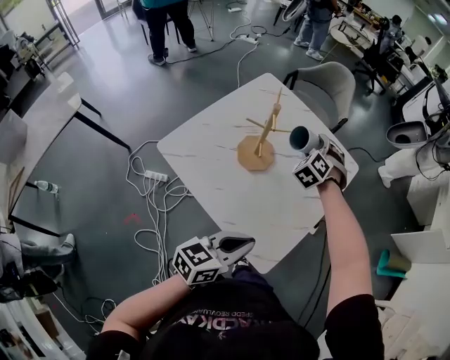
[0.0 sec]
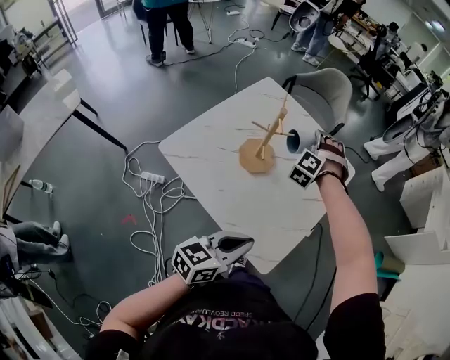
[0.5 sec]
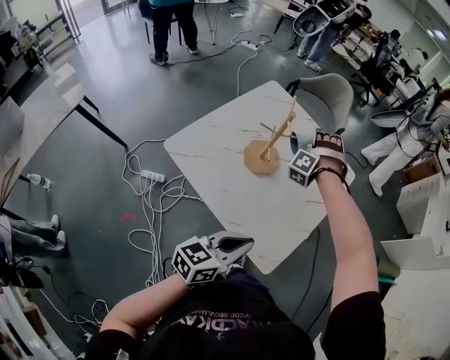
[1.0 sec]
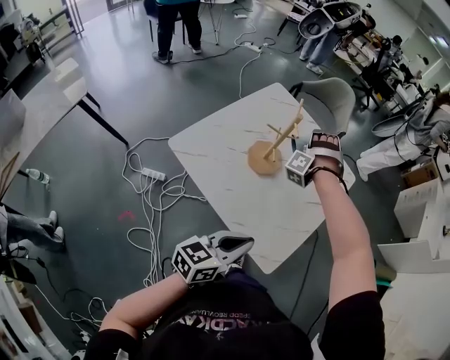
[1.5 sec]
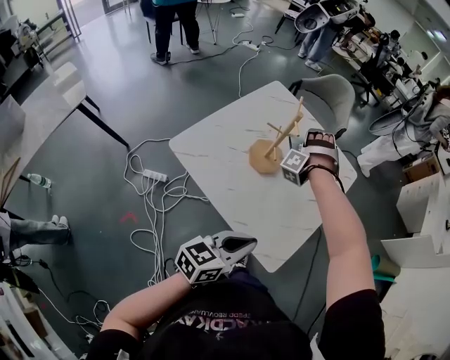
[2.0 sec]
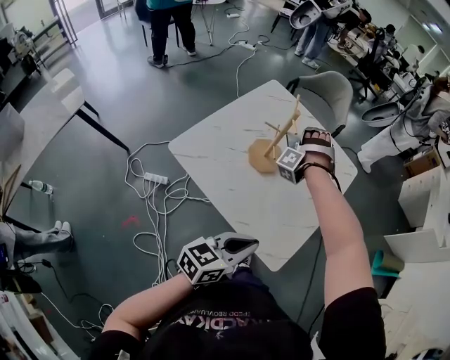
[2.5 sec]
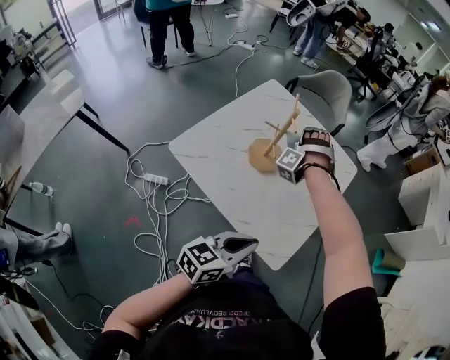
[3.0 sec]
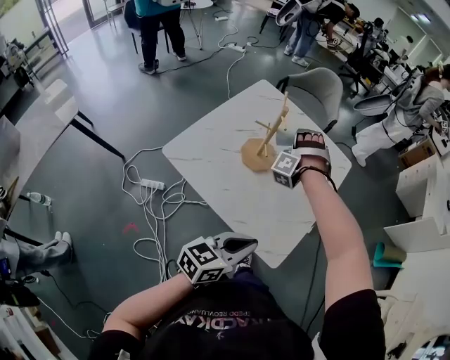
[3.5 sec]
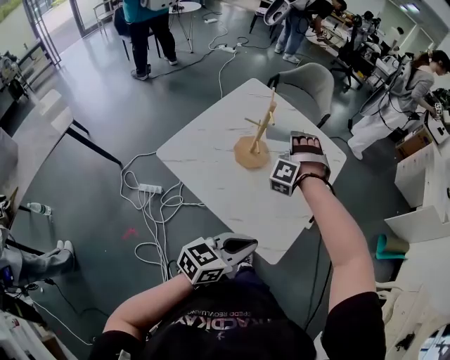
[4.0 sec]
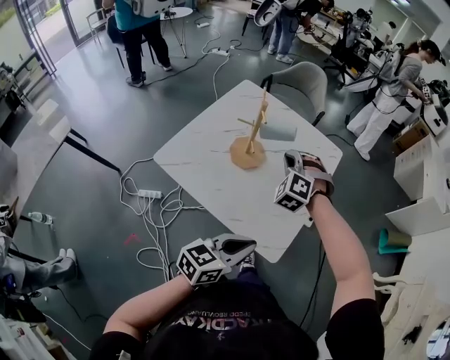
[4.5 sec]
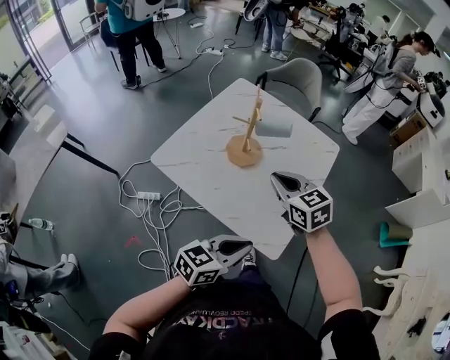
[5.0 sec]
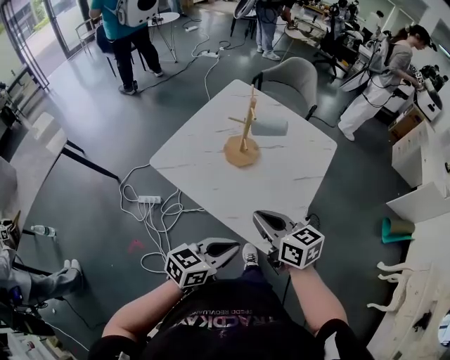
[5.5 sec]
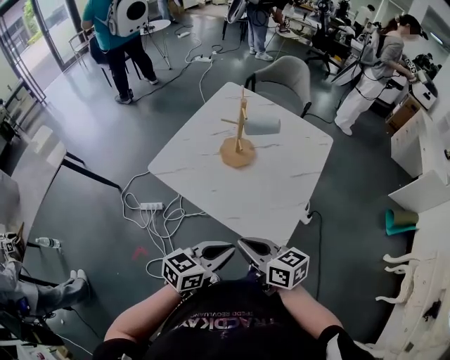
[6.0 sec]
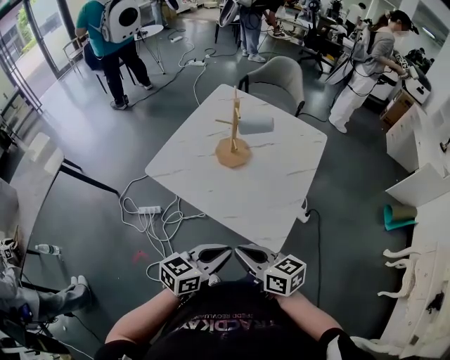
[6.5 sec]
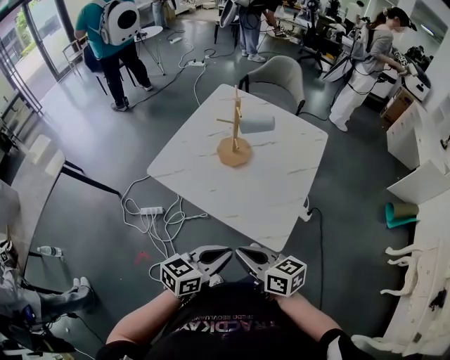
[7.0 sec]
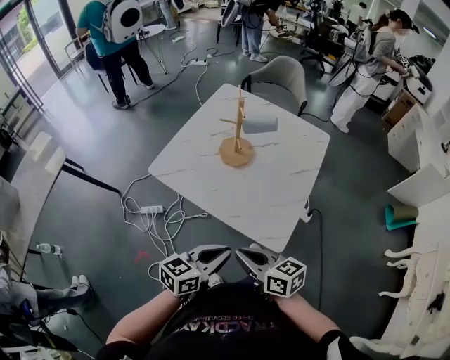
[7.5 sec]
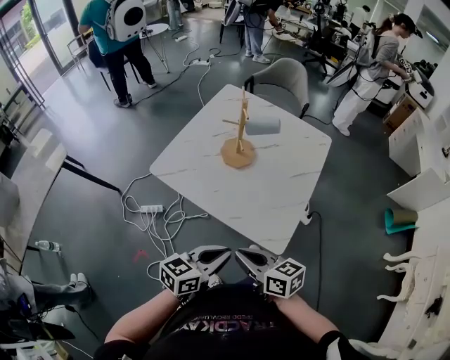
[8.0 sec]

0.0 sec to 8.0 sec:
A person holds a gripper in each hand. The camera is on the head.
0.0 sec to 2.0 sec: The left gripper is displaced backward by about 5 cm; the right gripper changes place by roughly 5 cm, and rolls counterclockwise, seen from behind, by roughly 50 degrees.
2.0 sec to 4.0 sec: The right gripper is displaced backward by roughly 5 cm.
4.0 sec to 6.0 sec: The left gripper moves approximately 5 cm, while the right gripper changes place by approximately 35 cm, turns by about 130 degrees, and closes its fingers.
6.0 sec to 8.0 sec: The grippers stay close to where they were, moving slightly.

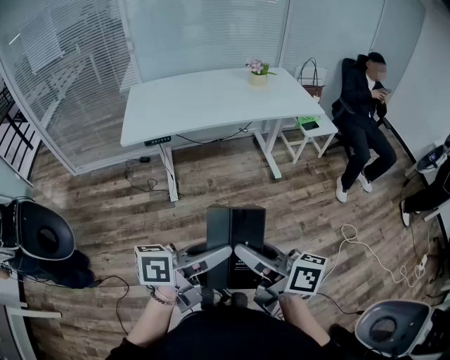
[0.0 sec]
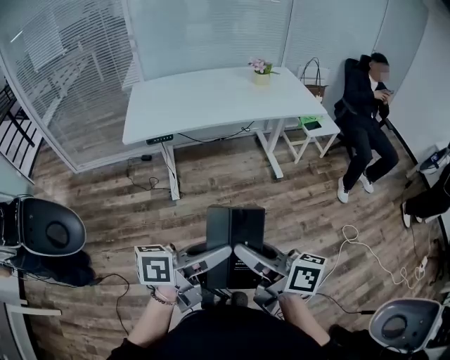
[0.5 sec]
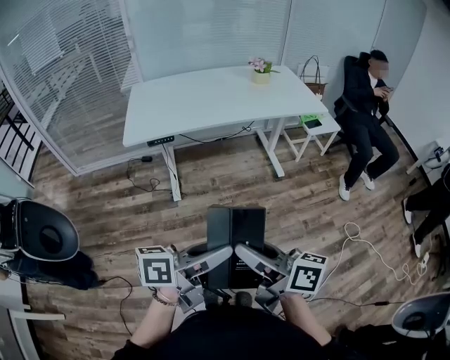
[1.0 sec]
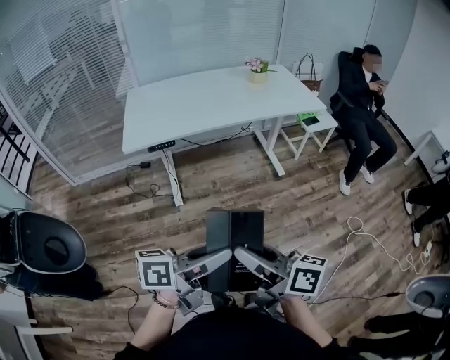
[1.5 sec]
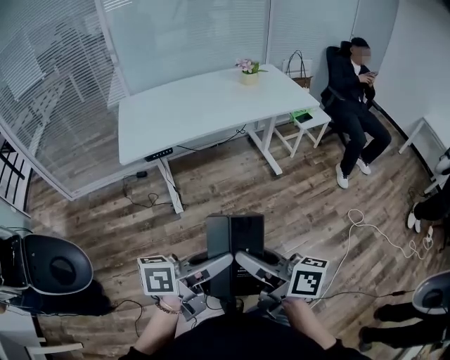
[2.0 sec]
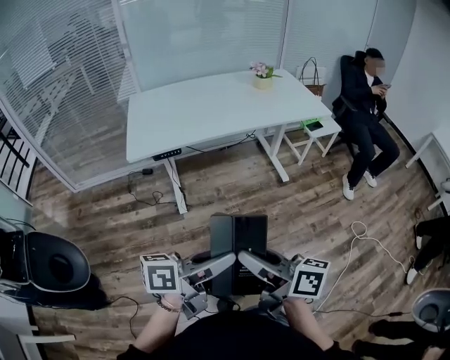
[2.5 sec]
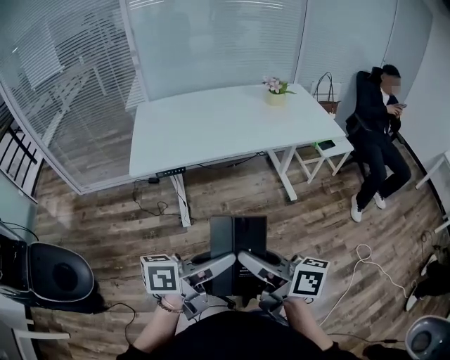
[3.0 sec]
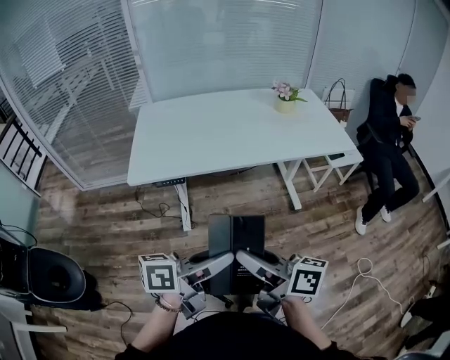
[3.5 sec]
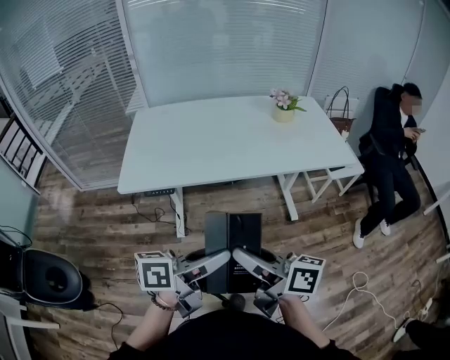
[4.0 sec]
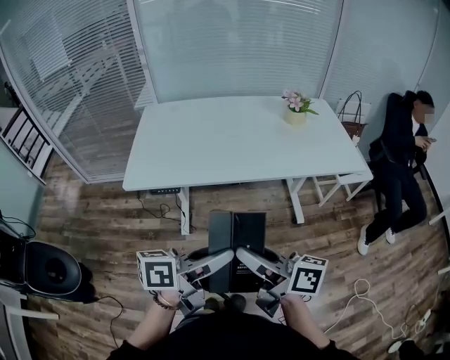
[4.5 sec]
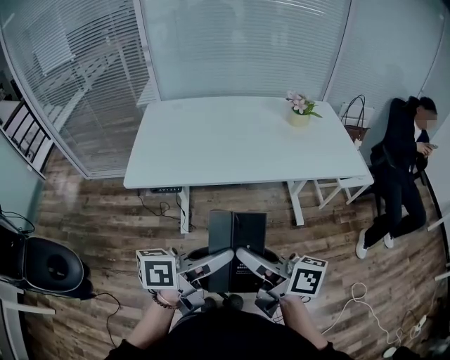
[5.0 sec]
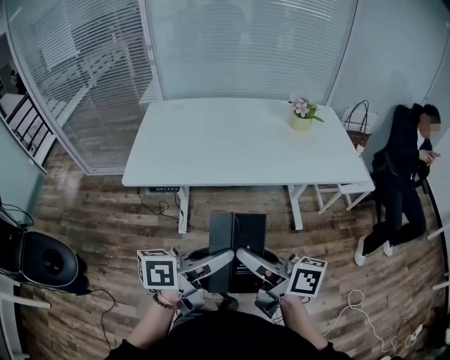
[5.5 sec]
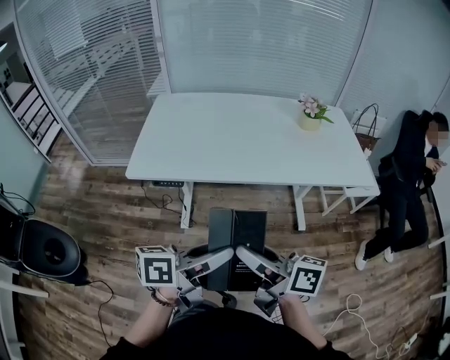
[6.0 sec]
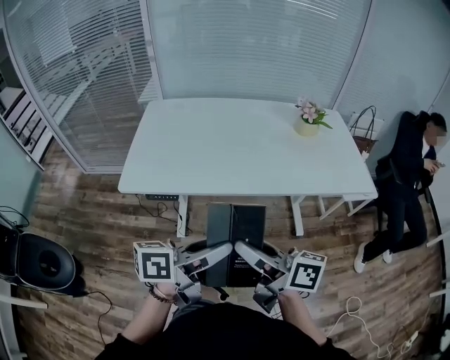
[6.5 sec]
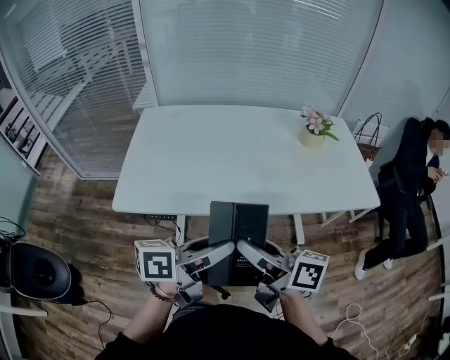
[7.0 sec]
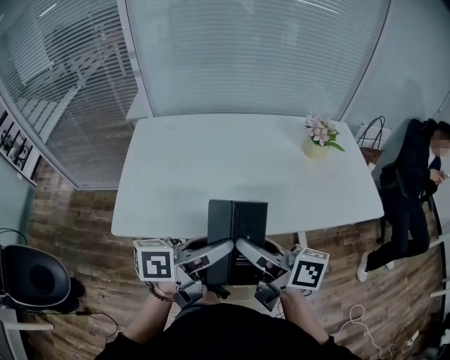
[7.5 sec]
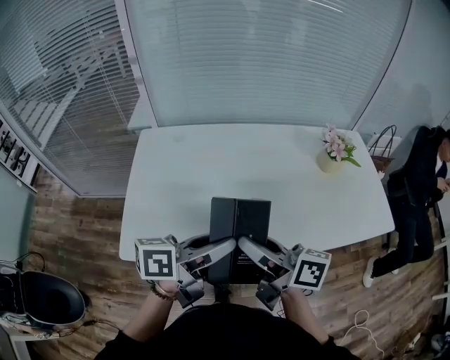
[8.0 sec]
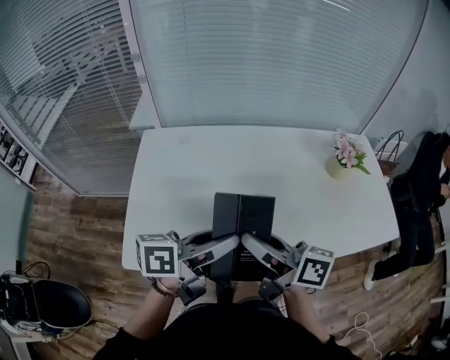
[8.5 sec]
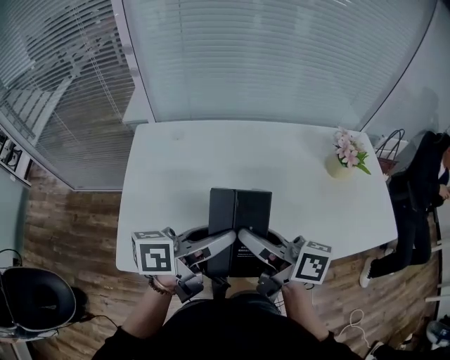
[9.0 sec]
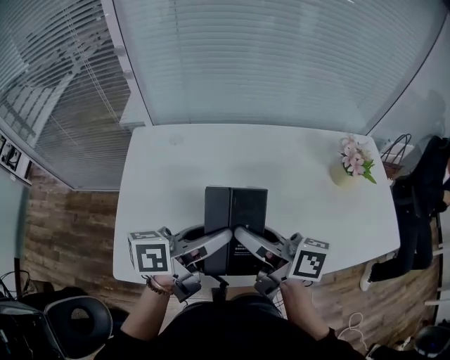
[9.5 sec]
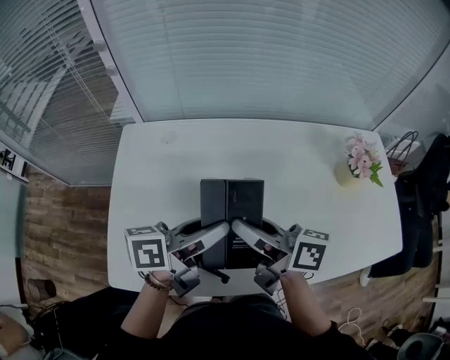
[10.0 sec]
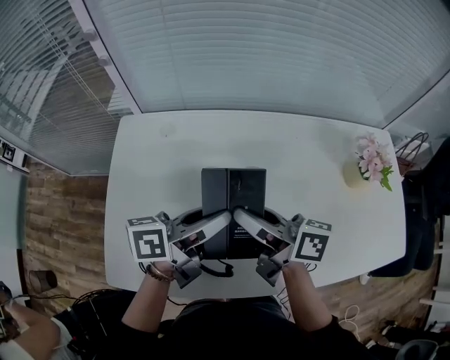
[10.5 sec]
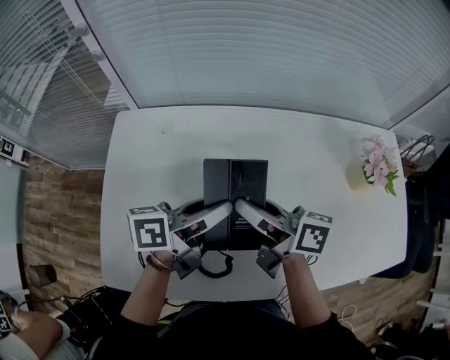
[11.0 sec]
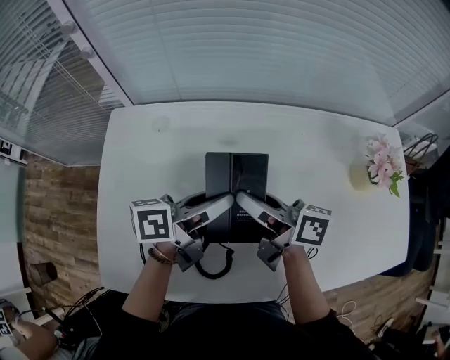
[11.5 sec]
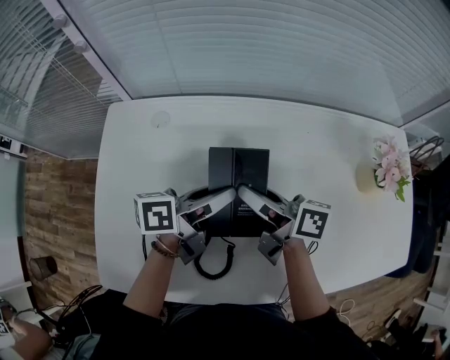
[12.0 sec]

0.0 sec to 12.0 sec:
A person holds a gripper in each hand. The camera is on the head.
0.0 sec to 2.0 sec: The two grippers go roughly 10 cm to the left.
2.0 sec to 4.0 sec: The two grippers go approximately 25 cm forward.
4.0 sec to 6.0 sec: The grippers stay close to where they were, moving slightly.
6.0 sec to 8.0 sec: Both grippers travel together forward, some 30 cm.
8.0 sec to 10.0 sec: The two grippers go approximately 15 cm forward.
10.0 sec to 12.0 sec: Both grippers move forward and downward, approximately 15 cm.

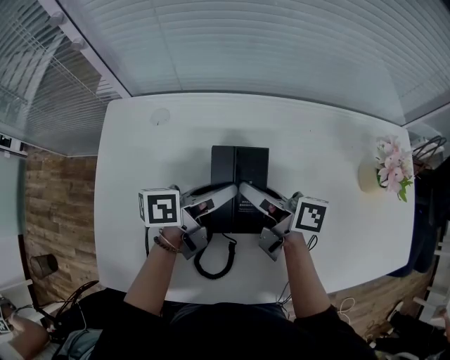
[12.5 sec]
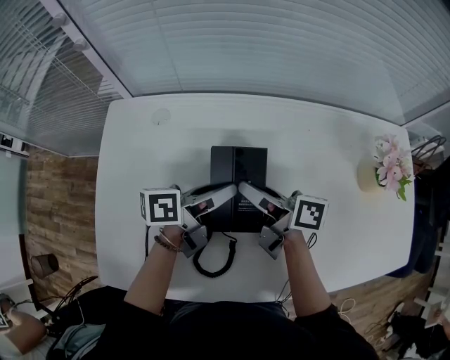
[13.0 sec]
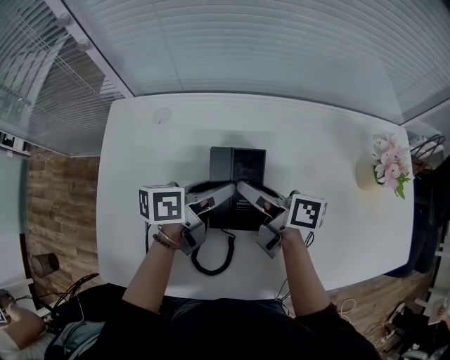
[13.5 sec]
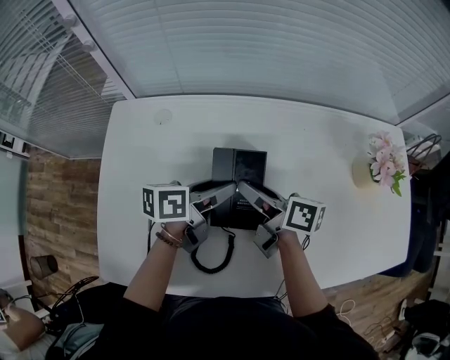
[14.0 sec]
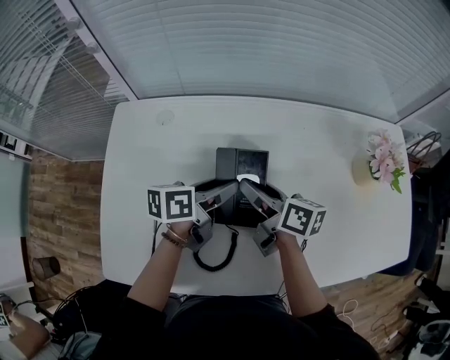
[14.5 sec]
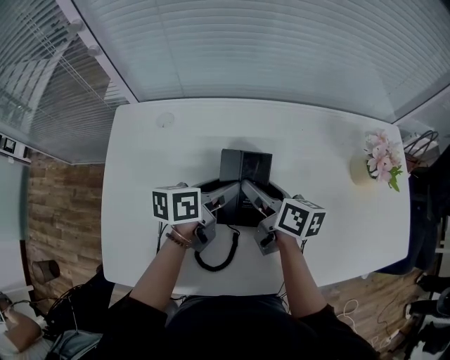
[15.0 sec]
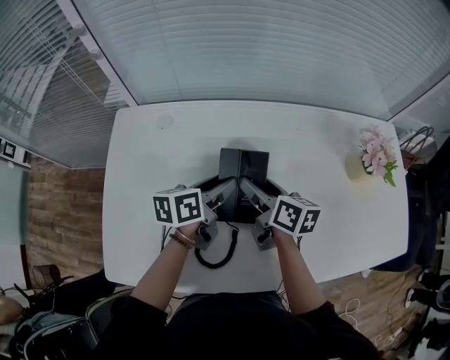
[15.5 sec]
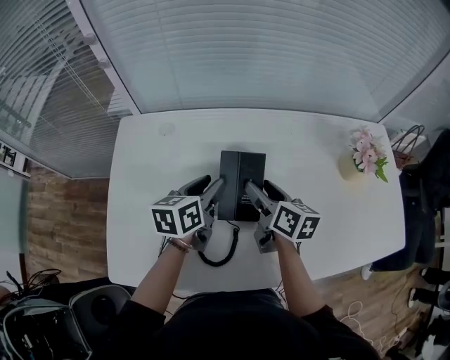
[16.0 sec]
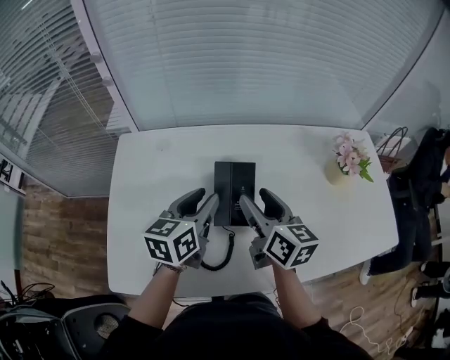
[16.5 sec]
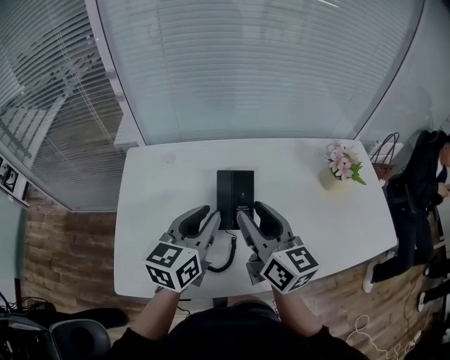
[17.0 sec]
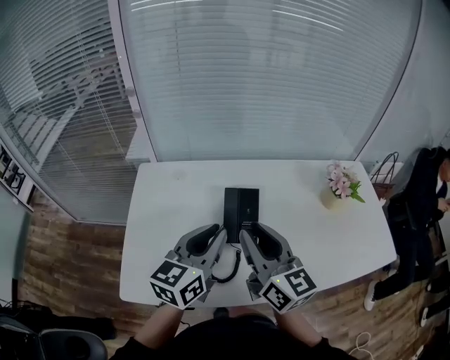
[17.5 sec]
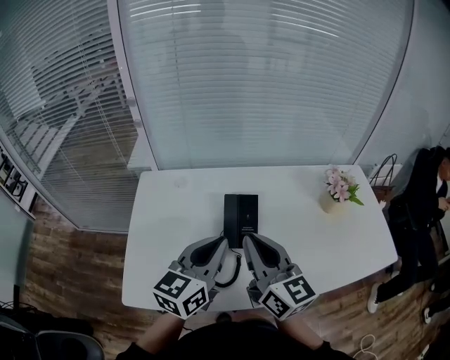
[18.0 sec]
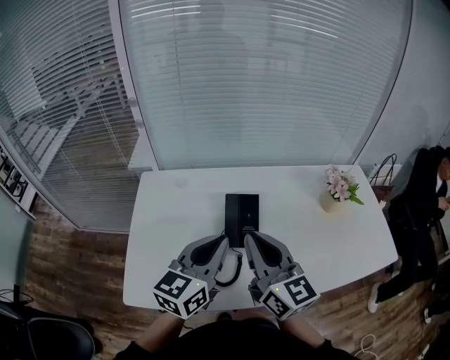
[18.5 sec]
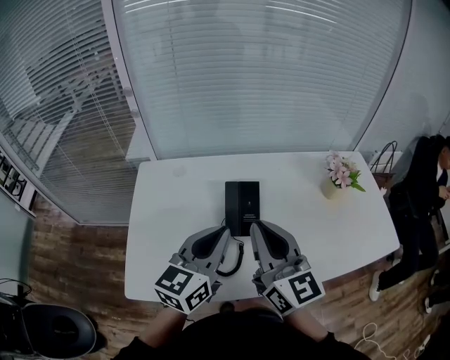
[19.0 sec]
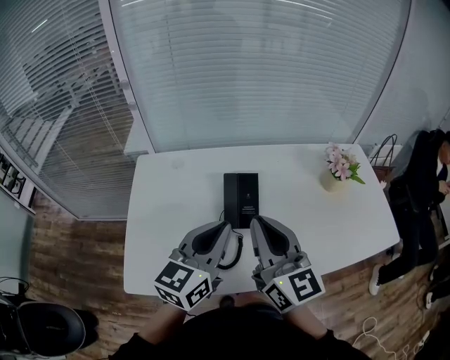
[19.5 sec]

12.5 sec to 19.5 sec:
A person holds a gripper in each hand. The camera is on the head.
12.5 sec to 14.5 sec: The grippers move only a little.
14.5 sec to 16.0 sec: The left gripper changes place by some 5 cm, and rotates some 30 degrees.
16.0 sec to 17.5 sec: Both grippers move upward and backward, some 25 cm. The left gripper swivels about 30 degrees, and closes up; the right gripper swivels about 40 degrees, and closes.
17.5 sec to 19.5 sec: The right gripper closes up.
